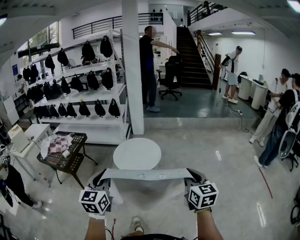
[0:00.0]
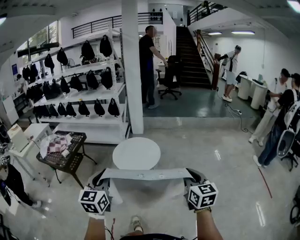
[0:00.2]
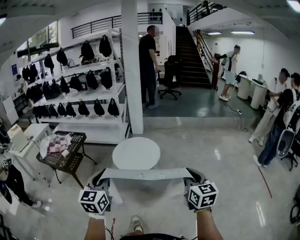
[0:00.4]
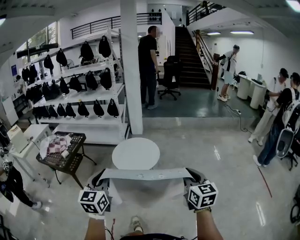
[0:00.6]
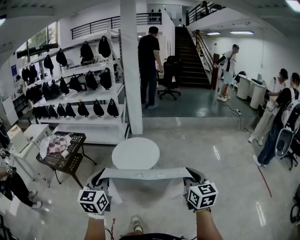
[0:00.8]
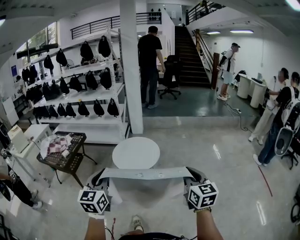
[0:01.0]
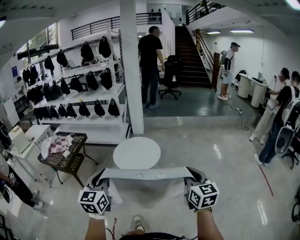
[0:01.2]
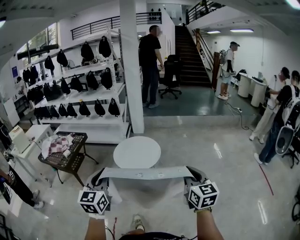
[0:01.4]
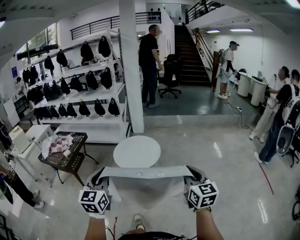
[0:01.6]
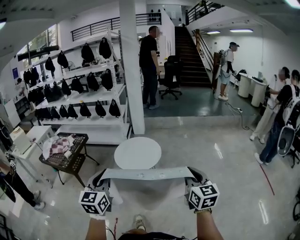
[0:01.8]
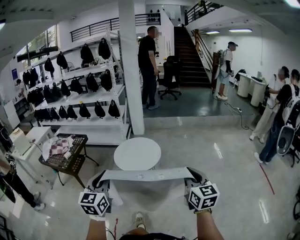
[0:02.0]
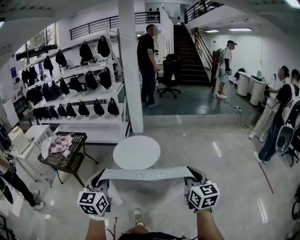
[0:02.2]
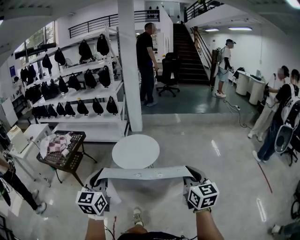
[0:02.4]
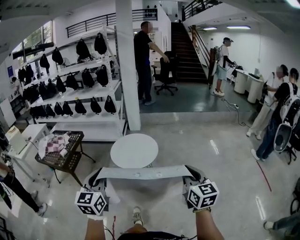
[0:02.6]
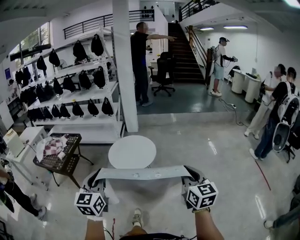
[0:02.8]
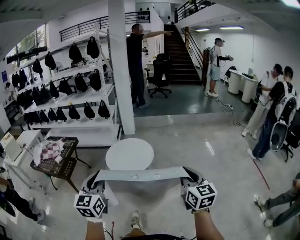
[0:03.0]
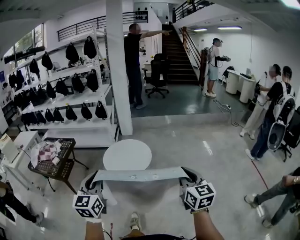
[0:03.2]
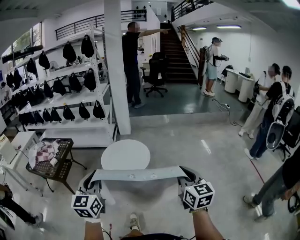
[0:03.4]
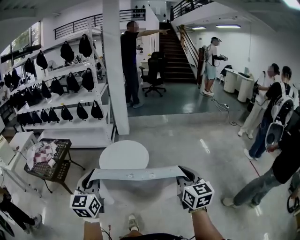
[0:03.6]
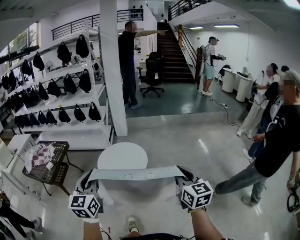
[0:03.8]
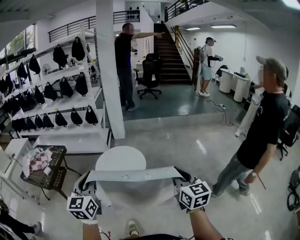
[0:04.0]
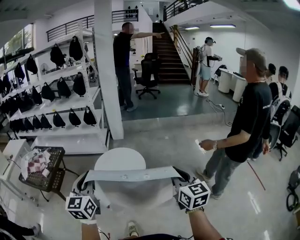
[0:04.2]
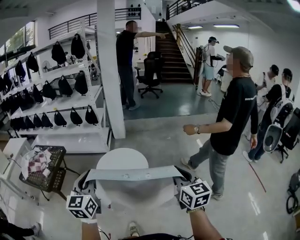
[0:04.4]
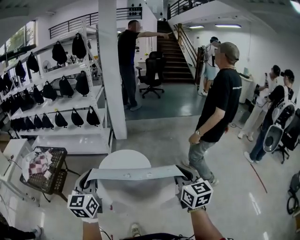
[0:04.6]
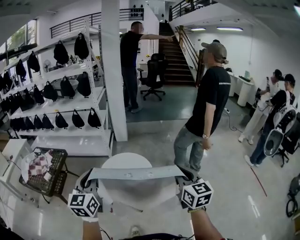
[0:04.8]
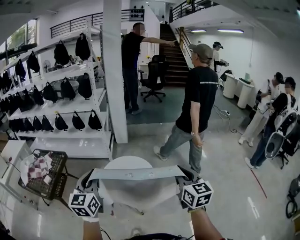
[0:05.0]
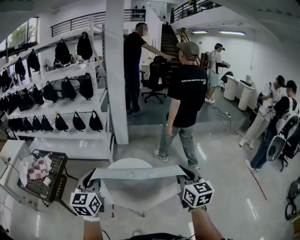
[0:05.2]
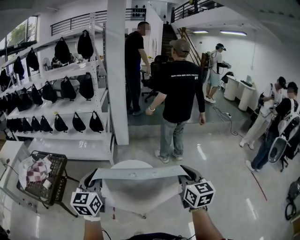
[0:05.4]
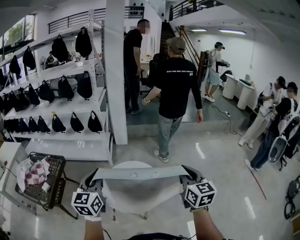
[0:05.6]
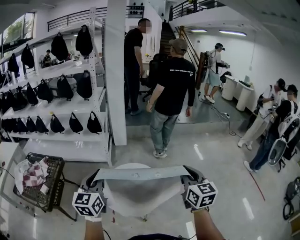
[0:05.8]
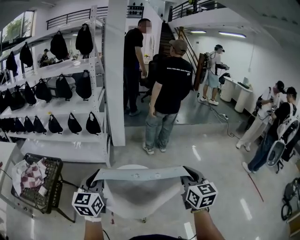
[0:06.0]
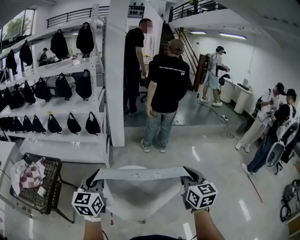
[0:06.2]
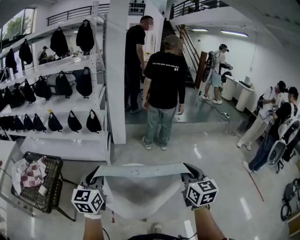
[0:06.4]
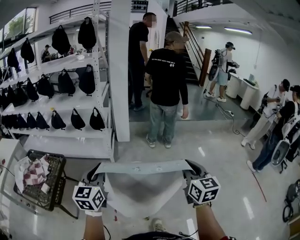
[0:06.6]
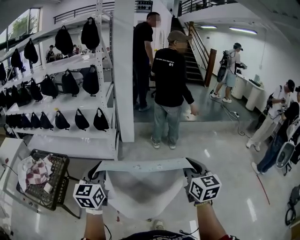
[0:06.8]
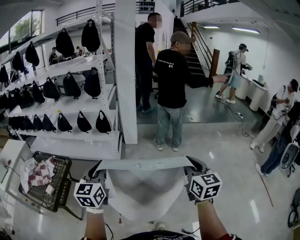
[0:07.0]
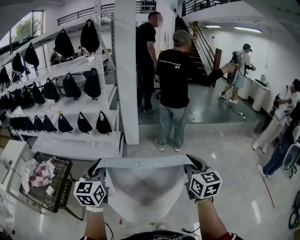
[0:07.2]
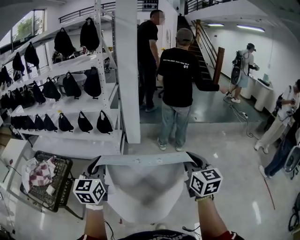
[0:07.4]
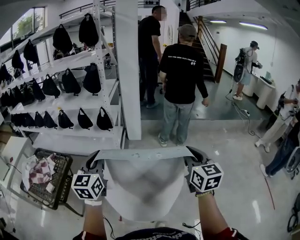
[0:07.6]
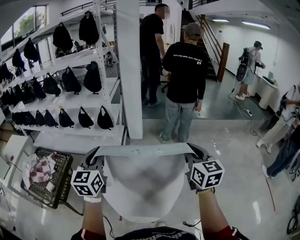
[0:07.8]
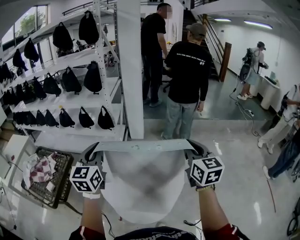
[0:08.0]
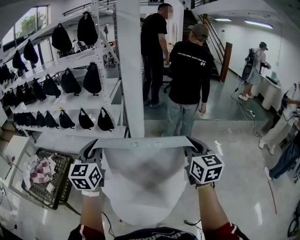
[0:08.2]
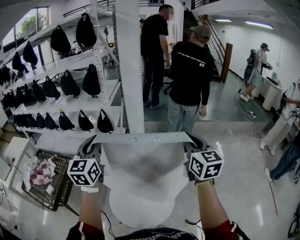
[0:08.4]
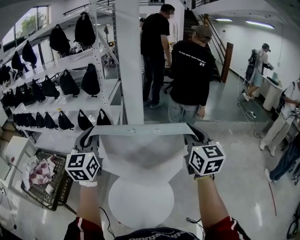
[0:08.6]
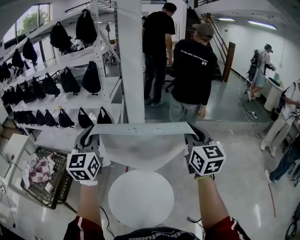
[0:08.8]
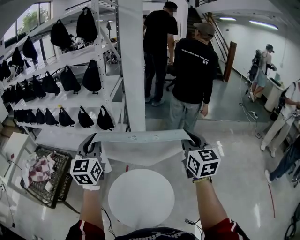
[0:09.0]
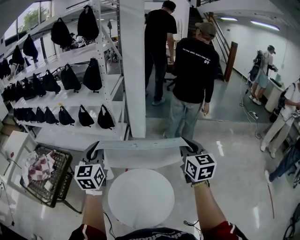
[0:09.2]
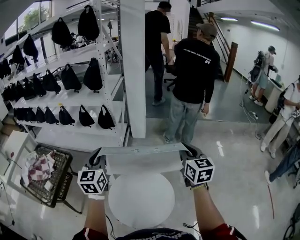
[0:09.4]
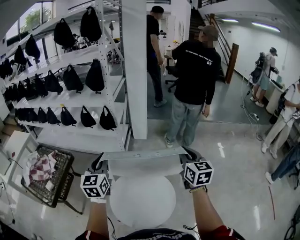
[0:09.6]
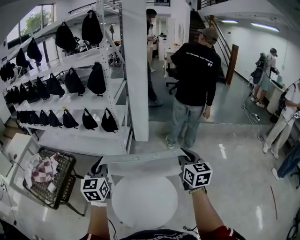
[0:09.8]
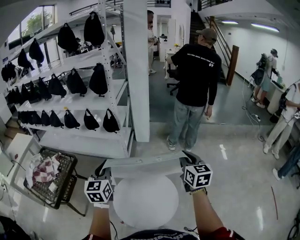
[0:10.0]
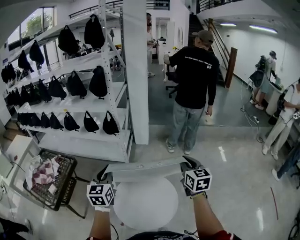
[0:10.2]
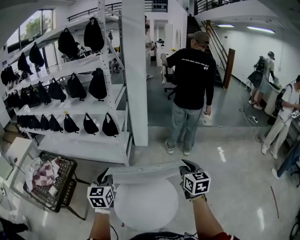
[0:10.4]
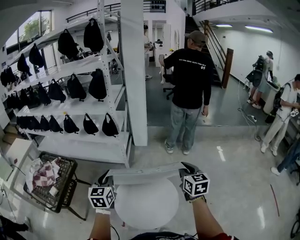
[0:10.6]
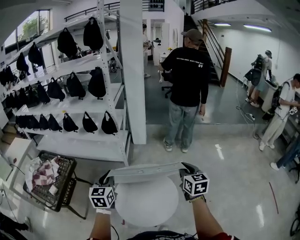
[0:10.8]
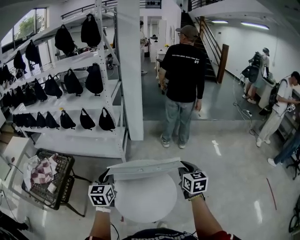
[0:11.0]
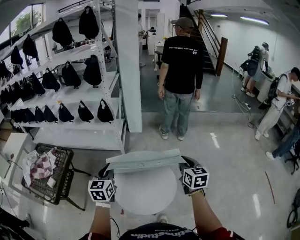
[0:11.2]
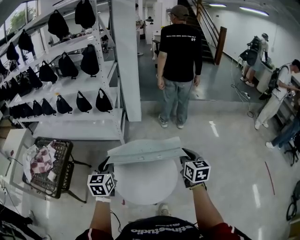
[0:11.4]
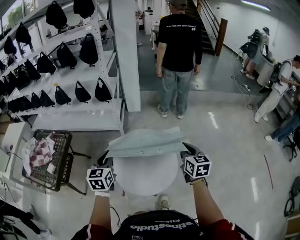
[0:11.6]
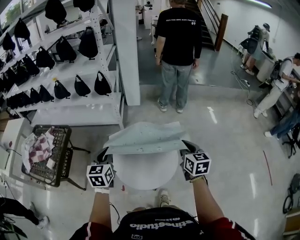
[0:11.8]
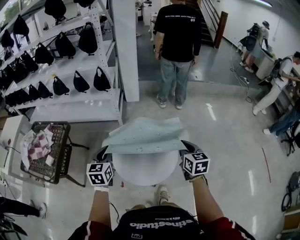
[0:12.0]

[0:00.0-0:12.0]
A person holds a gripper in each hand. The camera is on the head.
0:00.0 to 0:03.0: The grippers move only a little.
0:03.0 to 0:04.4: Both grippers travel together forward, roughly 20 cm.
0:04.4 to 0:06.0: Both grippers move forward and to the left, approximately 25 cm.
0:06.0 to 0:07.6: Both grippers move forward, roughly 15 cm.
0:07.6 to 0:09.0: Both grippers travel together forward, approximately 10 cm.
0:09.0 to 0:10.4: The grippers both shift downward and backward by roughly 15 cm.
0:10.4 to 0:12.0: The left gripper goes some 15 cm downward and backward; the right gripper moves backward and downward, roughly 20 cm.

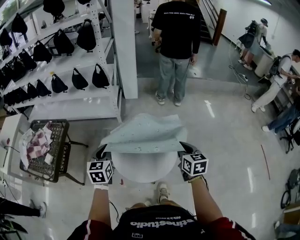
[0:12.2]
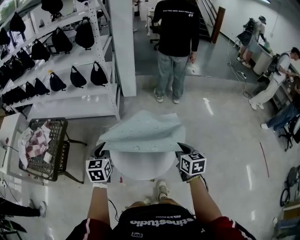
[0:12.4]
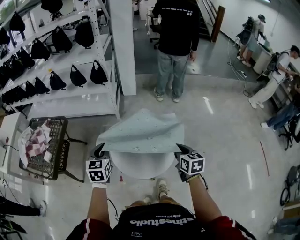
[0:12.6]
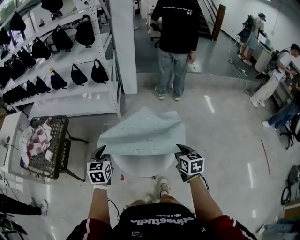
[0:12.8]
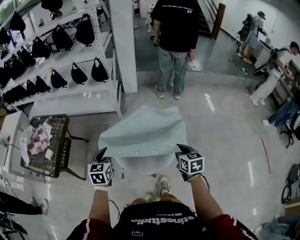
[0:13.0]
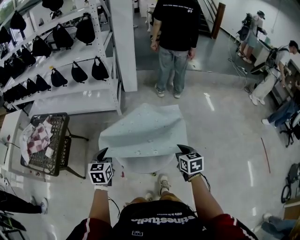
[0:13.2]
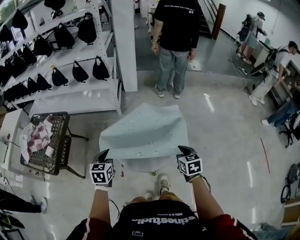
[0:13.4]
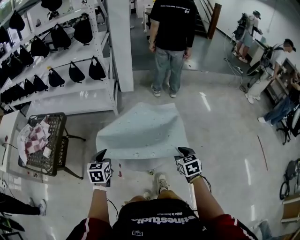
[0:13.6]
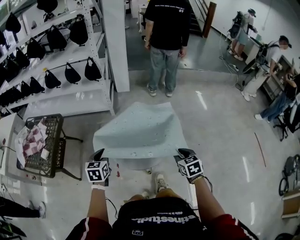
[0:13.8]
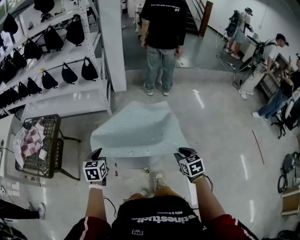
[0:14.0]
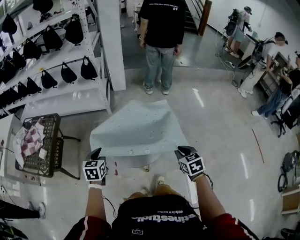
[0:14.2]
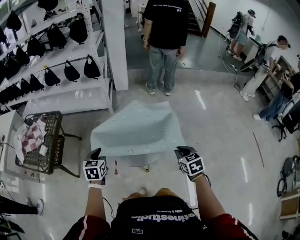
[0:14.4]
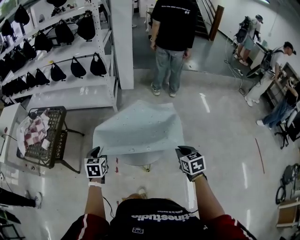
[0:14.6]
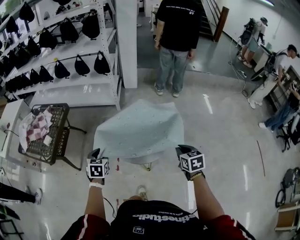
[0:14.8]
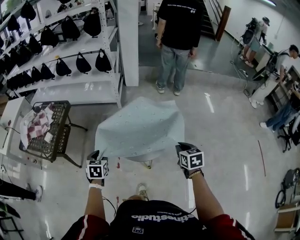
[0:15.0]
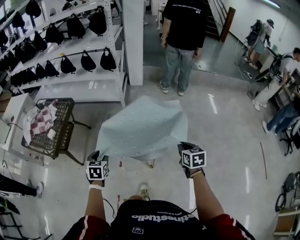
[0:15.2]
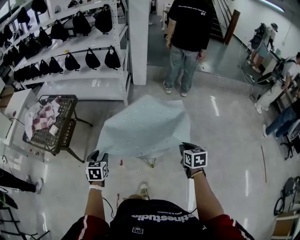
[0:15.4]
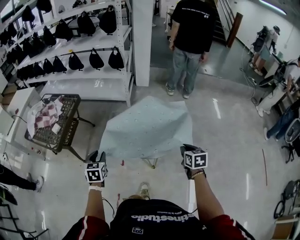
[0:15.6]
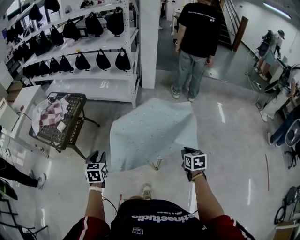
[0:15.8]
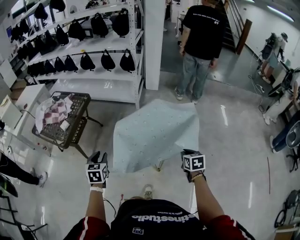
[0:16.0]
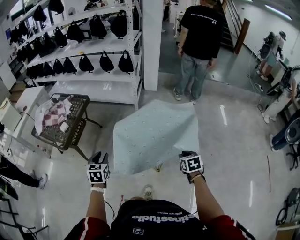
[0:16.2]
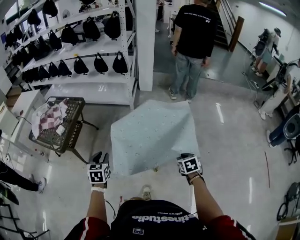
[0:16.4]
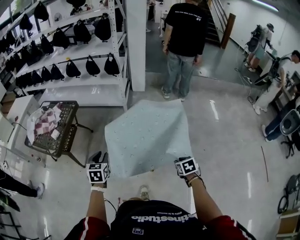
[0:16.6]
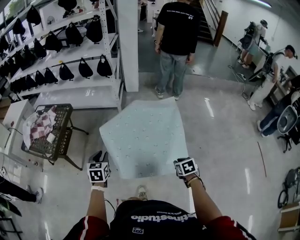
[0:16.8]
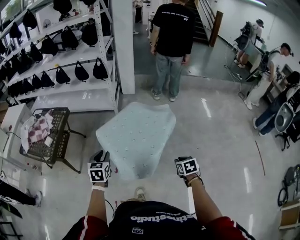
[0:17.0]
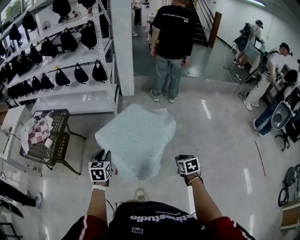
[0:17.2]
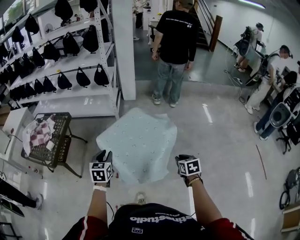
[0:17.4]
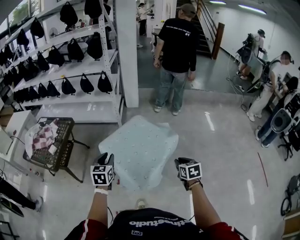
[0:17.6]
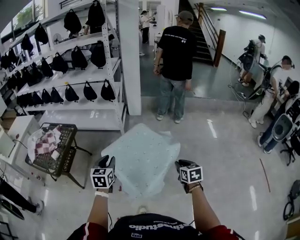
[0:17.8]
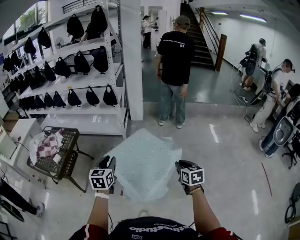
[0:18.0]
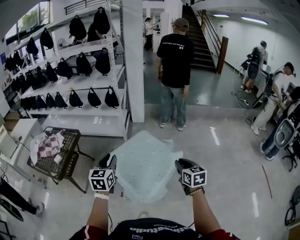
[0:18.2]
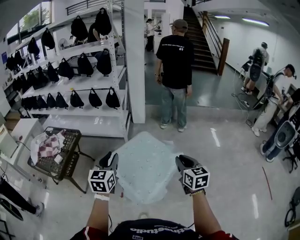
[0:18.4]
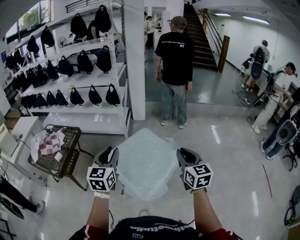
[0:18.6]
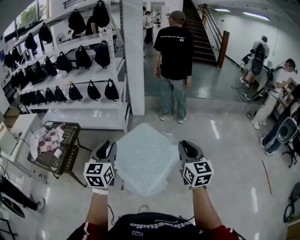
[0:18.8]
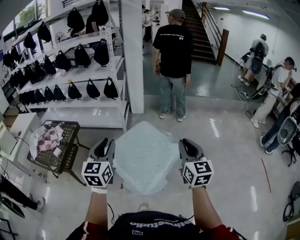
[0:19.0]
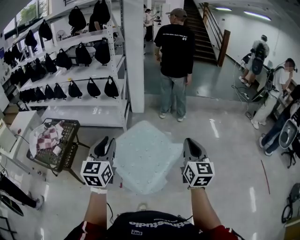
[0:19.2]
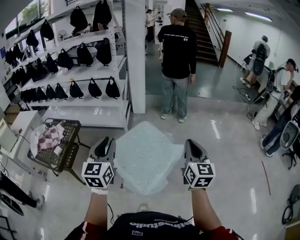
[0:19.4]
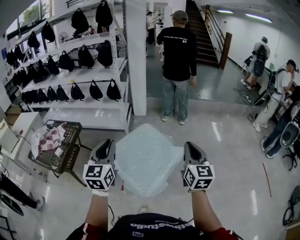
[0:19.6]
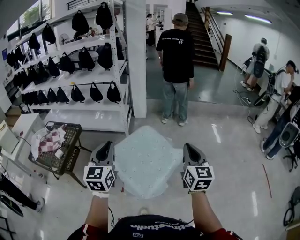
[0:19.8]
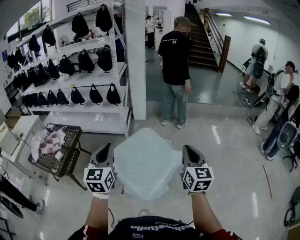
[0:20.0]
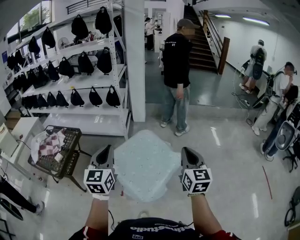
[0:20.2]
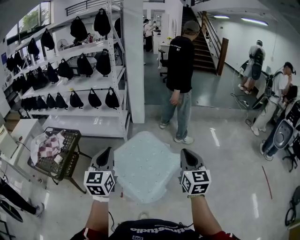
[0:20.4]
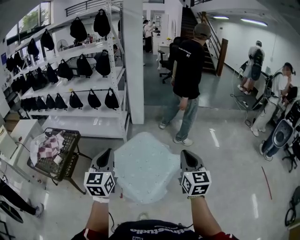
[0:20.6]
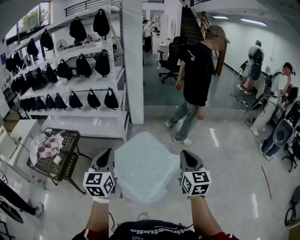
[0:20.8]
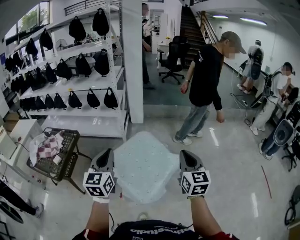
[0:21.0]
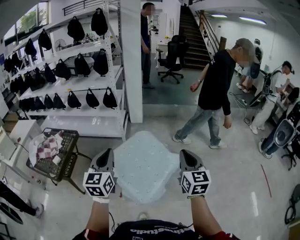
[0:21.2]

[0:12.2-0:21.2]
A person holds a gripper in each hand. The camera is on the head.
0:12.2 to 0:13.8: Both grippers move backward and downward, approximately 15 cm. The right gripper swivels approximately 20 degrees, and opens.
0:13.8 to 0:15.2: The left gripper heads backward, covering approximately 10 cm, and opens its fingers. The right gripper closes.
0:15.2 to 0:16.6: The right gripper is displaced downward and backward by some 15 cm, rotates roughly 20 degrees, and opens its fingers.
0:16.6 to 0:18.2: The left gripper travels upward and to the right by some 20 cm, and swivels approximately 20 degrees. The right gripper travels upward by about 20 cm, and angles its fingers upward, by about 30 degrees.
0:18.2 to 0:19.8: Both grippers move upward, some 10 cm. The right gripper turns by approximately 30 degrees.
0:19.8 to 0:21.2: The grippers move only a little.

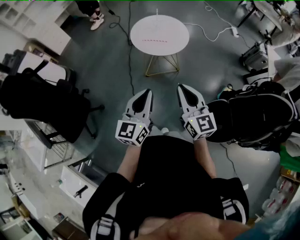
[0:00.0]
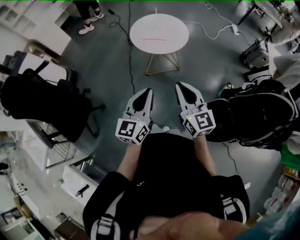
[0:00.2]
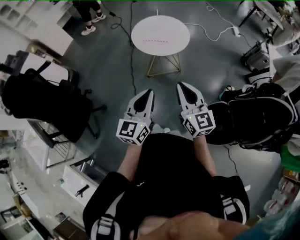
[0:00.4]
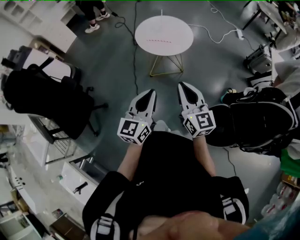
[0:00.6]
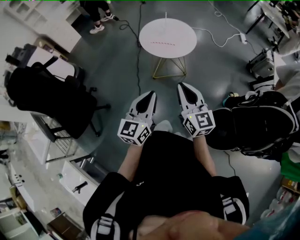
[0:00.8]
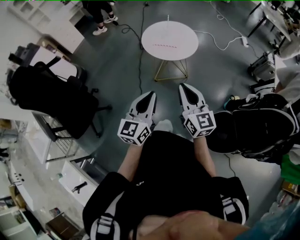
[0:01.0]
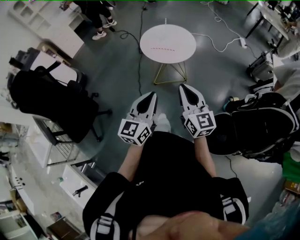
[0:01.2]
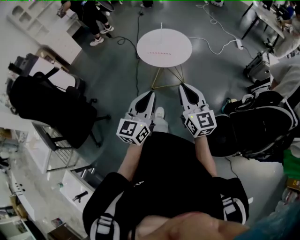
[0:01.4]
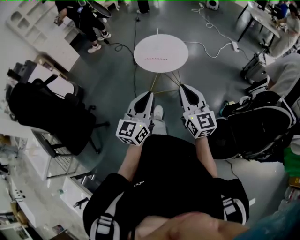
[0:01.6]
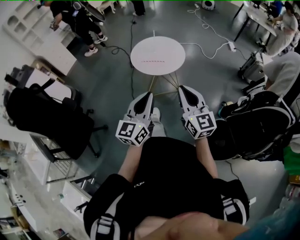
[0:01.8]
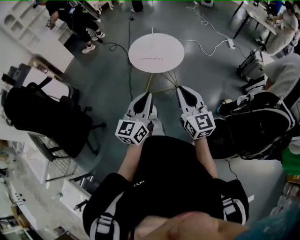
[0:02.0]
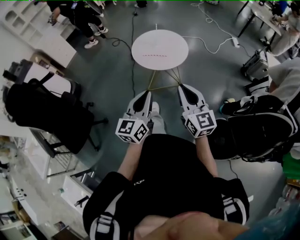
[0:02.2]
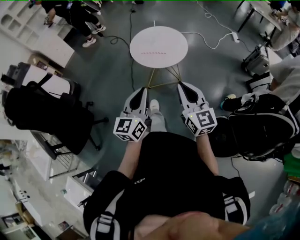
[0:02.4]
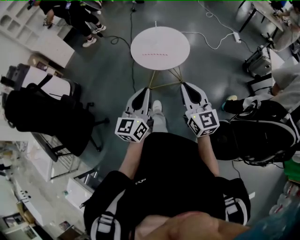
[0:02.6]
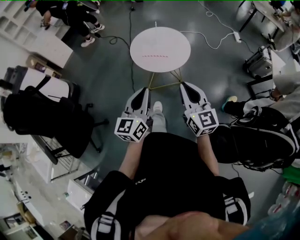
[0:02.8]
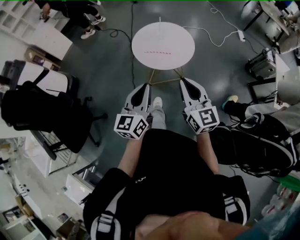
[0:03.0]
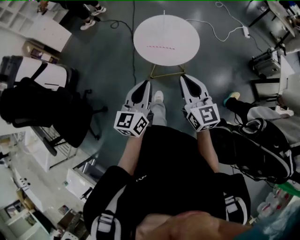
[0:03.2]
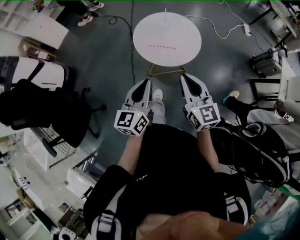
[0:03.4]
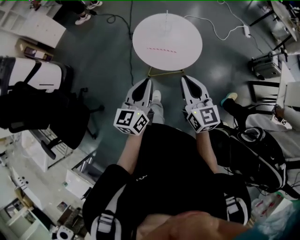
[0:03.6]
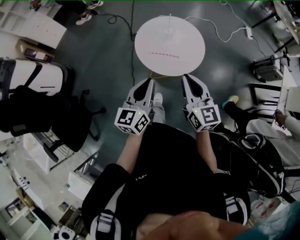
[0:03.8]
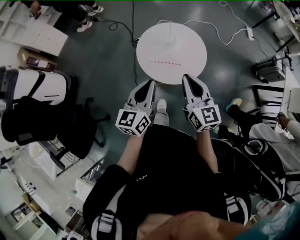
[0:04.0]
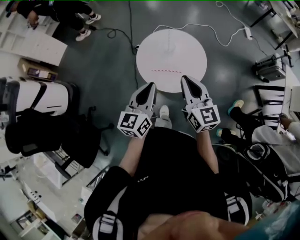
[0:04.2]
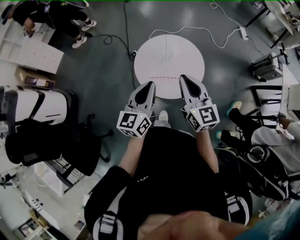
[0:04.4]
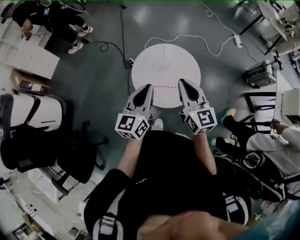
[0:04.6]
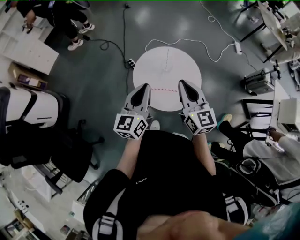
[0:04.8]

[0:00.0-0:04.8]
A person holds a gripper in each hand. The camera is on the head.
0:00.0 to 0:01.6: The right gripper shifts by some 5 cm.
0:01.6 to 0:03.2: Both grippers travel together forward, roughly 20 cm.
0:03.2 to 0:04.8: Both grippers travel together forward, about 30 cm.
